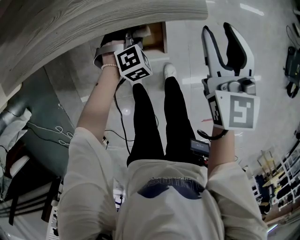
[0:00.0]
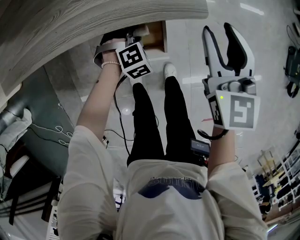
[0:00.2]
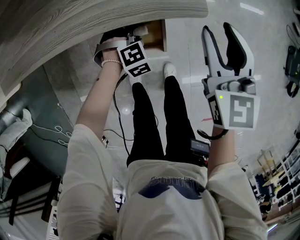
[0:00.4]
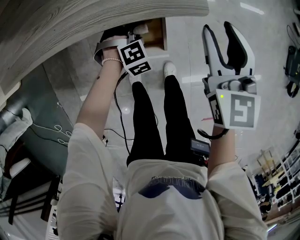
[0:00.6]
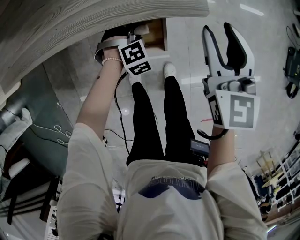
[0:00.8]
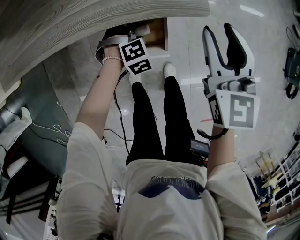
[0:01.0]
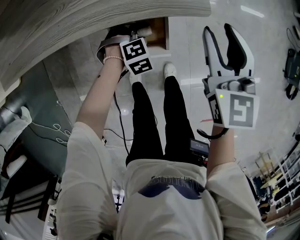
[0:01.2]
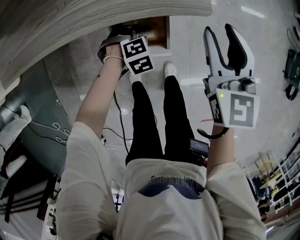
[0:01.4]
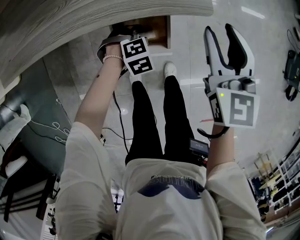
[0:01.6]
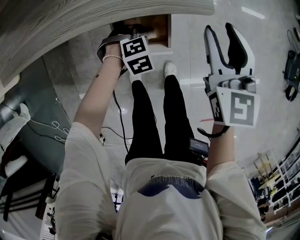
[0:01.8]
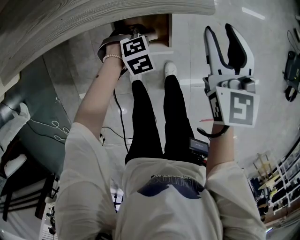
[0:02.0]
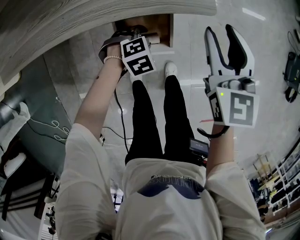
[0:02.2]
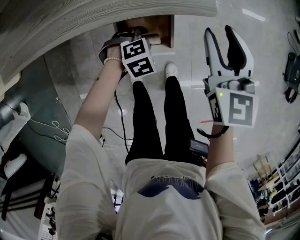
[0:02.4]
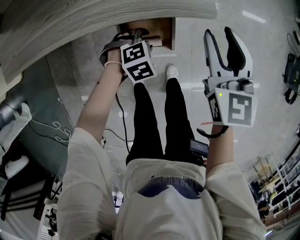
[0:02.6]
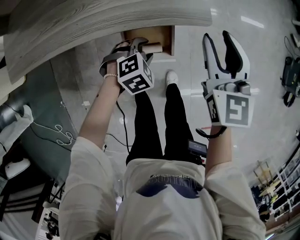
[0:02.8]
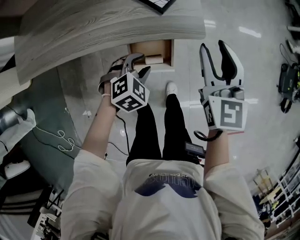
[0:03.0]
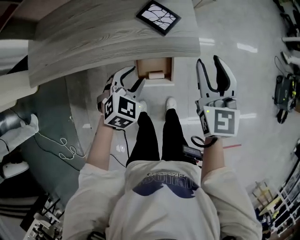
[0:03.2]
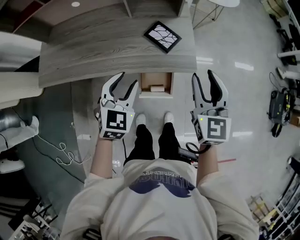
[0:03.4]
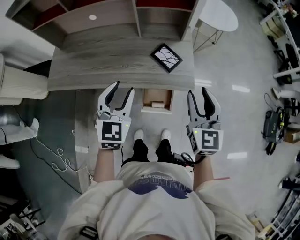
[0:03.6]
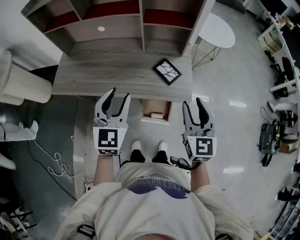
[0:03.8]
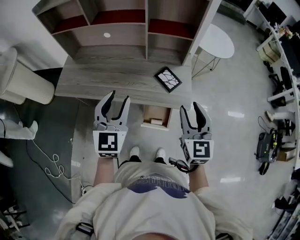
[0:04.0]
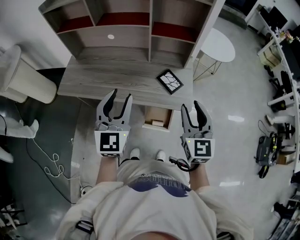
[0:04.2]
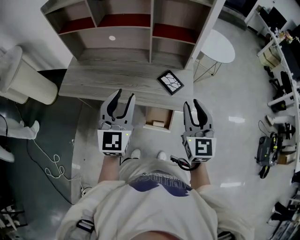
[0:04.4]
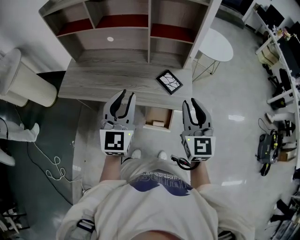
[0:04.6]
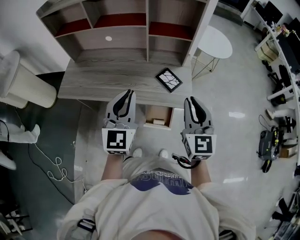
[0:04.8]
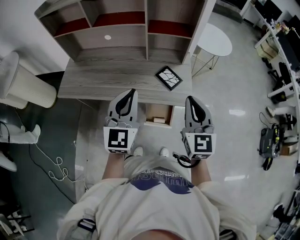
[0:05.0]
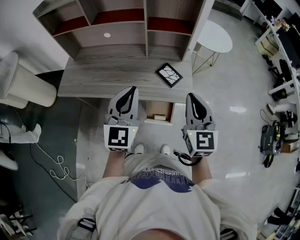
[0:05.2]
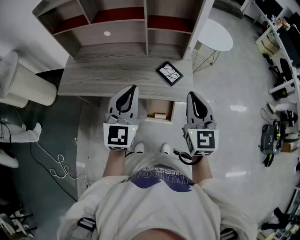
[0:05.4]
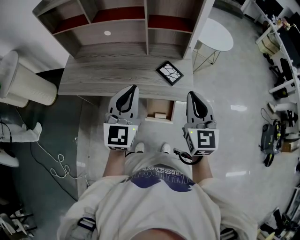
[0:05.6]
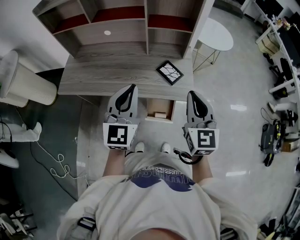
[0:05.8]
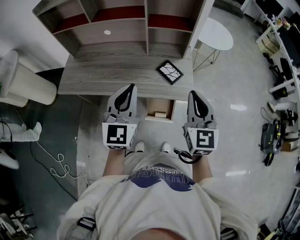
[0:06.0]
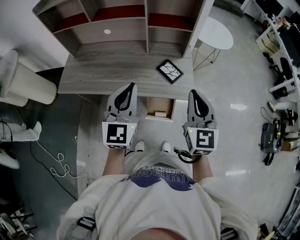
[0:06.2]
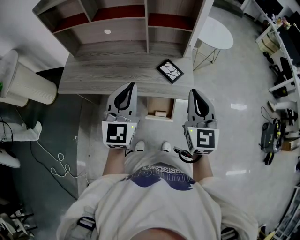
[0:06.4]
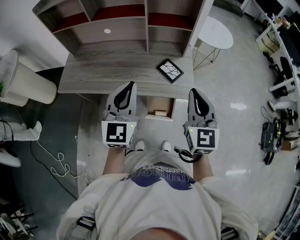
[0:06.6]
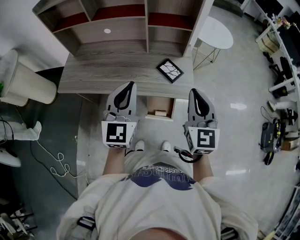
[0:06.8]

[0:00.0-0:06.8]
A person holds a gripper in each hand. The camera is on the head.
0:00.0 to 0:01.4: The grippers stay close to where they were, moving slightly.
0:01.4 to 0:02.8: The left gripper heads upward, covering roughly 10 cm.
0:02.8 to 0:04.0: The right gripper goes roughly 25 cm upward; the left gripper heads upward, covering about 50 cm, and tips its fingers upward by approximately 60 degrees.
0:04.0 to 0:05.4: The right gripper closes its fingers. Meanwhile the left gripper closes.
0:05.4 to 0:06.8: Both grippers stay put.

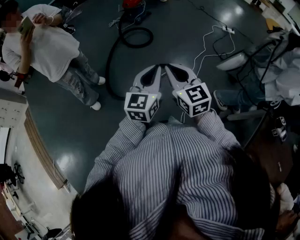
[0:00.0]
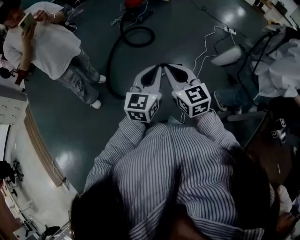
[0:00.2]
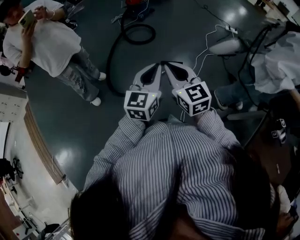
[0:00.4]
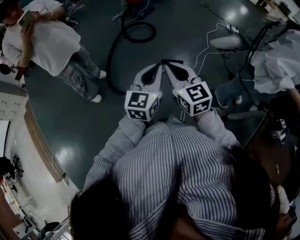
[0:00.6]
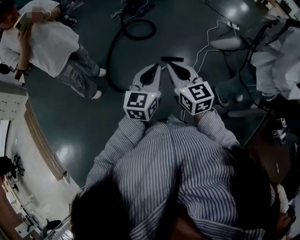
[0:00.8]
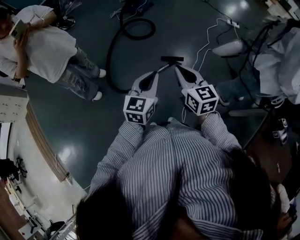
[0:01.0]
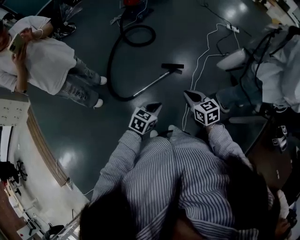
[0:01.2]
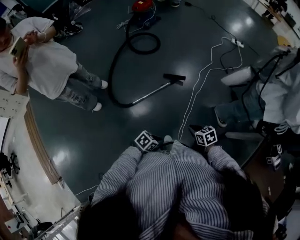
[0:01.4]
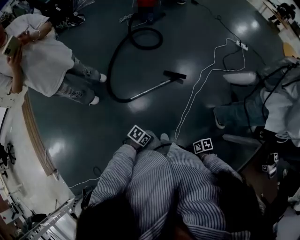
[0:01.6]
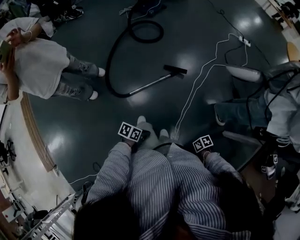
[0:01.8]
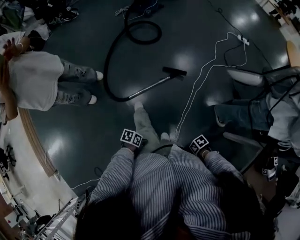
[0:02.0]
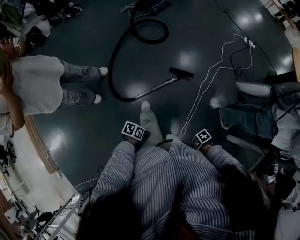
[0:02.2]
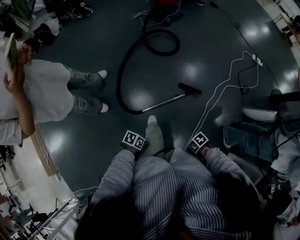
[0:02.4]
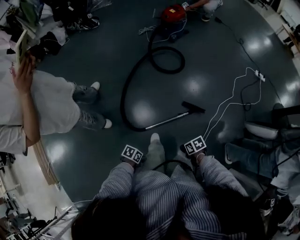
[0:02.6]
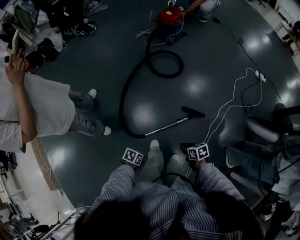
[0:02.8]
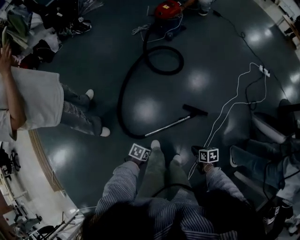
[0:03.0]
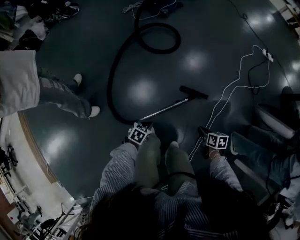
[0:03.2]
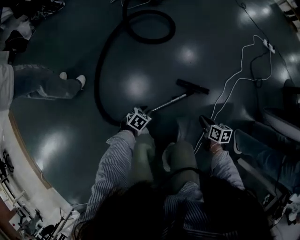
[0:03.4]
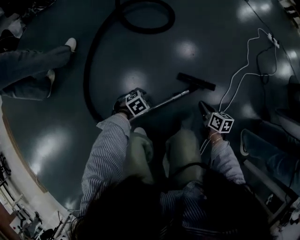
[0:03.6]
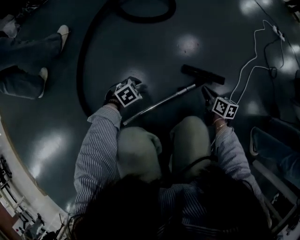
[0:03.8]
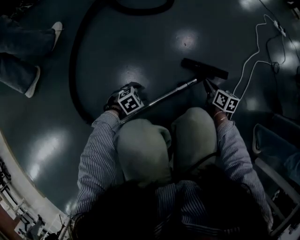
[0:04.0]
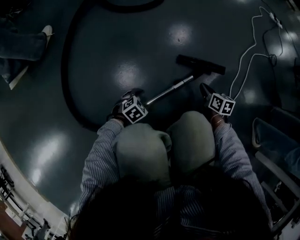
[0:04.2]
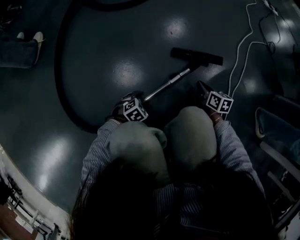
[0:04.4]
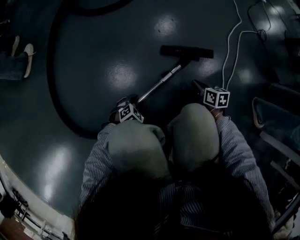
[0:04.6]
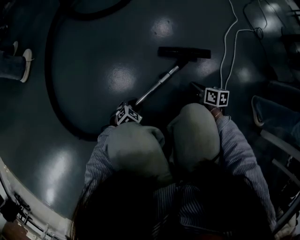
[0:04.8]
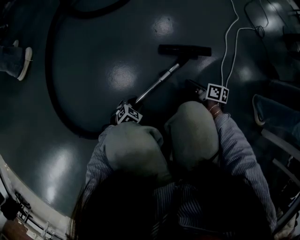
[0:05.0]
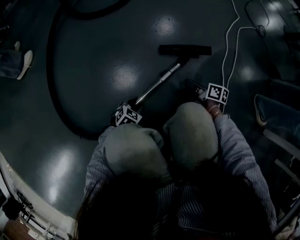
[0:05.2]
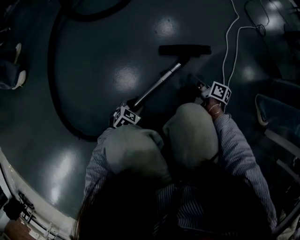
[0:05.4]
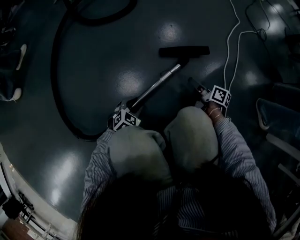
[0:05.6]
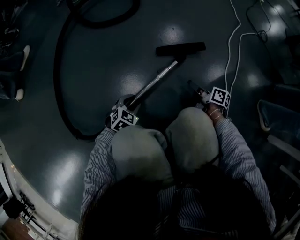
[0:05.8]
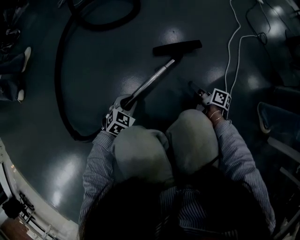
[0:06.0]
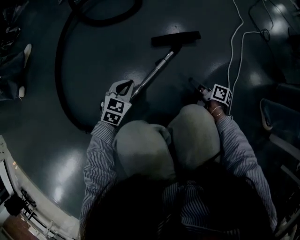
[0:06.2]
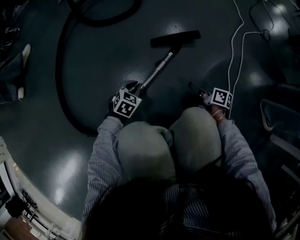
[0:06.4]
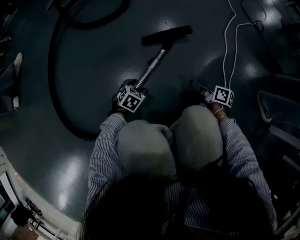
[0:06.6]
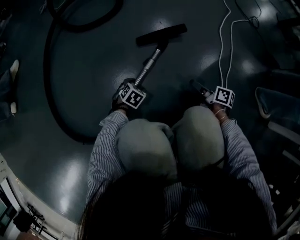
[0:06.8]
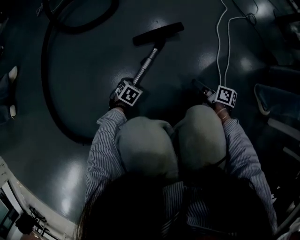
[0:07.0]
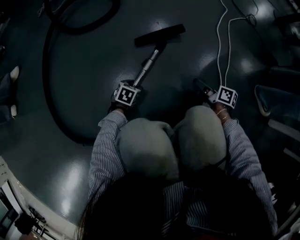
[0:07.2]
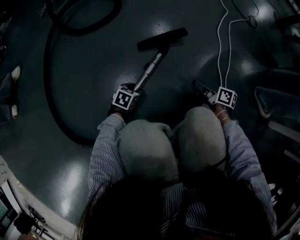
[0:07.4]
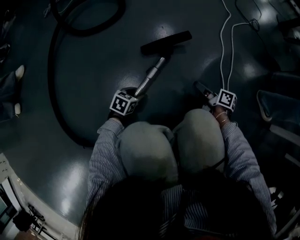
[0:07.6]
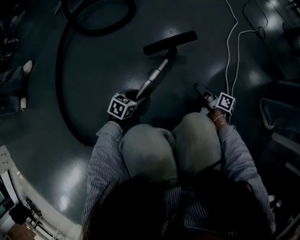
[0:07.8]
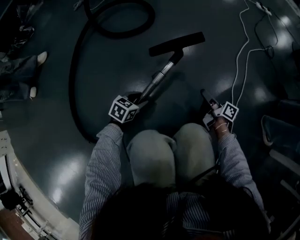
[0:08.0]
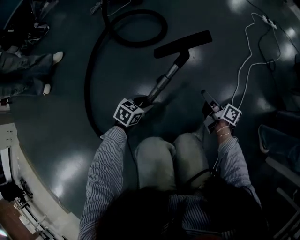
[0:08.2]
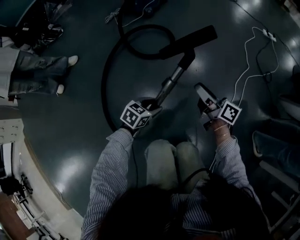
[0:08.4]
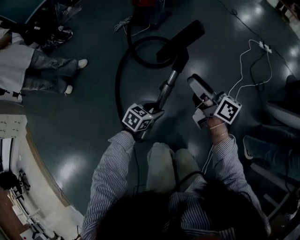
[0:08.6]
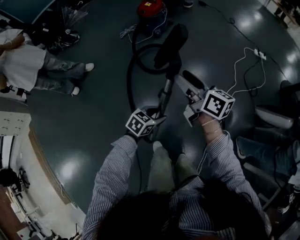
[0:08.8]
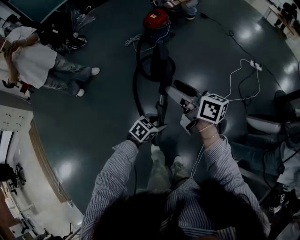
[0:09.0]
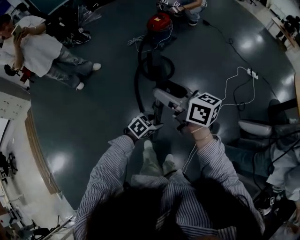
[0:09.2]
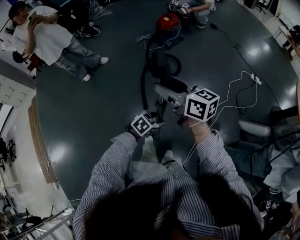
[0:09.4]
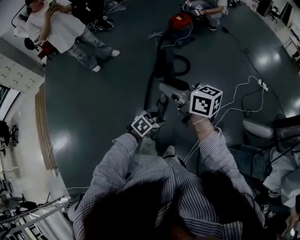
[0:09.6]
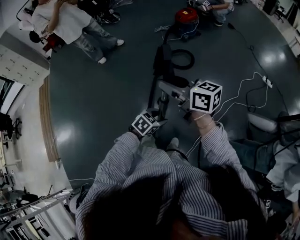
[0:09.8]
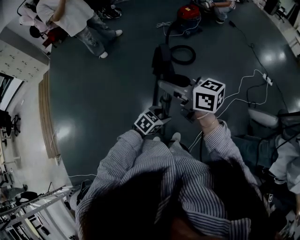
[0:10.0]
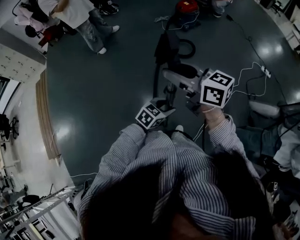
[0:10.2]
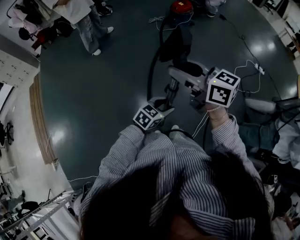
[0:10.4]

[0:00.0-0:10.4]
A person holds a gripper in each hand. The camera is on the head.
0:00.0 to 0:01.4: The grippers both shift downward by about 35 cm. The right gripper tilts its fingers roughly 40 degrees downward. Meanwhile the left gripper tips its fingers downward by roughly 40 degrees.
0:01.4 to 0:03.0: The right gripper changes place by about 35 cm, and rotates roughly 20 degrees, while the left gripper moves roughly 40 cm, and turns by some 30 degrees.
0:03.0 to 0:04.4: Both grippers travel together downward, roughly 50 cm. The right gripper changes its angle by some 30 degrees. The left gripper rolls clockwise, seen from behind, by approximately 50 degrees, and opens up.
0:04.4 to 0:06.0: The left gripper shifts roughly 15 cm upward and forward, changes its angle by about 30 degrees, and closes its fingers, while the right gripper turns by about 40 degrees, and opens.
0:06.0 to 0:07.4: The left gripper moves downward and to the right, about 15 cm, and rotates roughly 20 degrees. The right gripper heads to the right, covering about 5 cm.
0:07.4 to 0:09.0: The two grippers go roughly 80 cm upward. The right gripper turns by roughly 50 degrees, and opens its fingers.
0:09.0 to 0:10.4: The right gripper moves backward, to the left and upward, roughly 35 cm, turns by roughly 30 degrees, and closes; the left gripper shifts roughly 30 cm backward and upward, and swivels some 20 degrees.

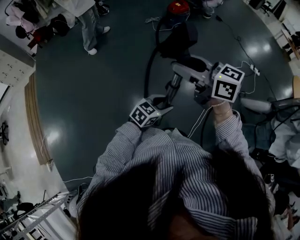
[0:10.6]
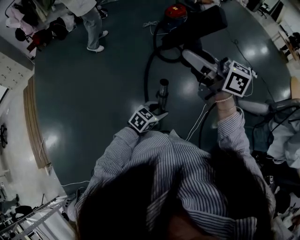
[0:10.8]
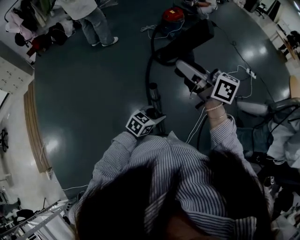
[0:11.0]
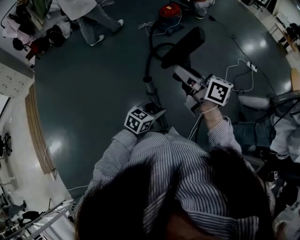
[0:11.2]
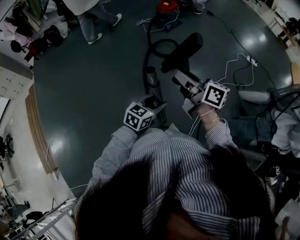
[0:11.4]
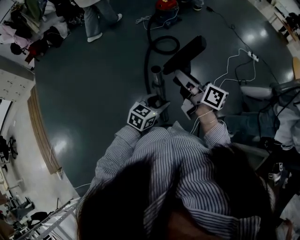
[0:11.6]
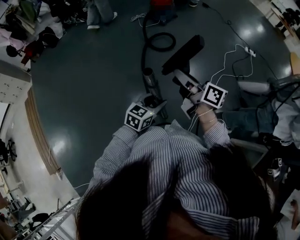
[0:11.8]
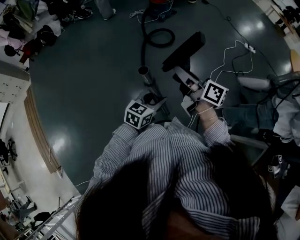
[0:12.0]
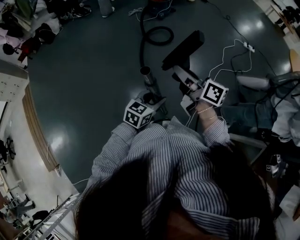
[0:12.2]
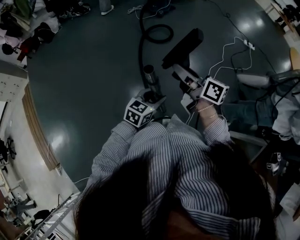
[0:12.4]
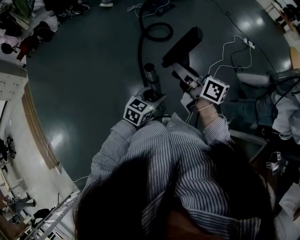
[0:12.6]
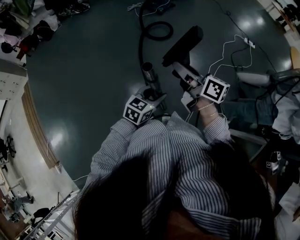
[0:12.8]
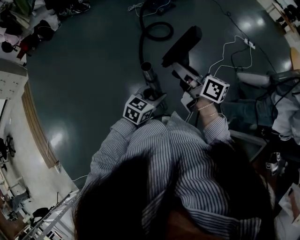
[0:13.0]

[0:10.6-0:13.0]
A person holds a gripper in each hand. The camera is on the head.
0:10.6 to 0:11.8: The right gripper goes about 15 cm downward and to the right, and rotates approximately 40 degrees.
0:11.8 to 0:13.0: The grippers stay close to where they were, moving slightly.

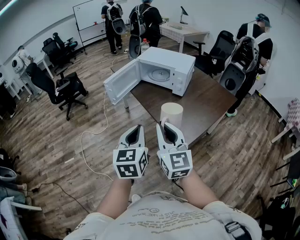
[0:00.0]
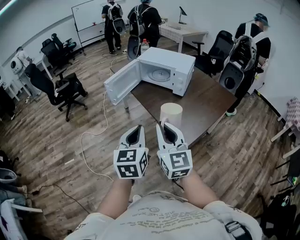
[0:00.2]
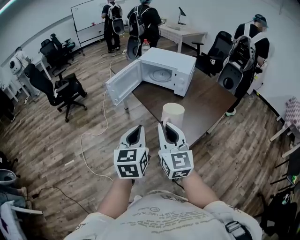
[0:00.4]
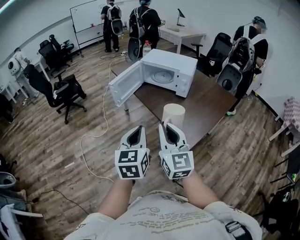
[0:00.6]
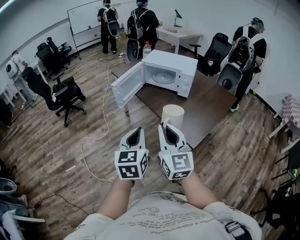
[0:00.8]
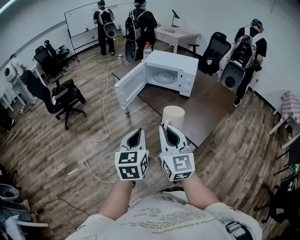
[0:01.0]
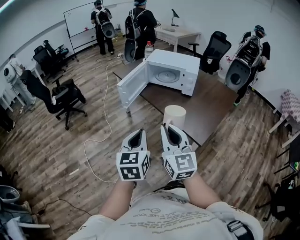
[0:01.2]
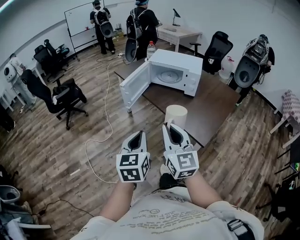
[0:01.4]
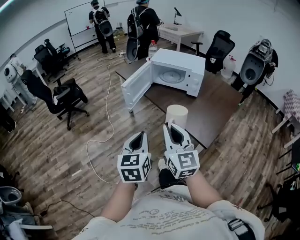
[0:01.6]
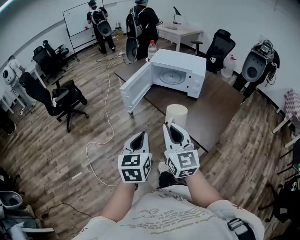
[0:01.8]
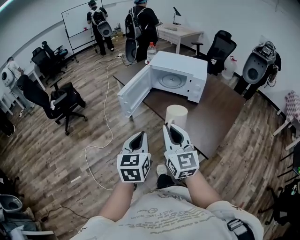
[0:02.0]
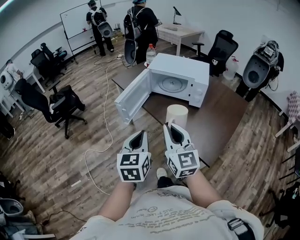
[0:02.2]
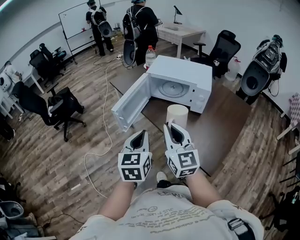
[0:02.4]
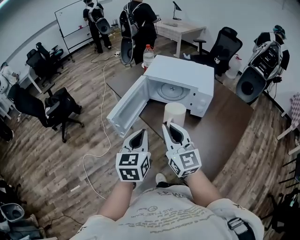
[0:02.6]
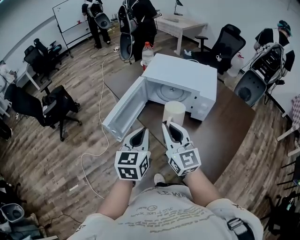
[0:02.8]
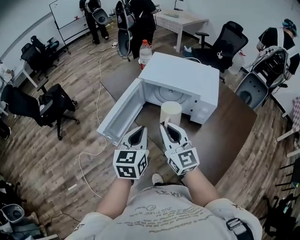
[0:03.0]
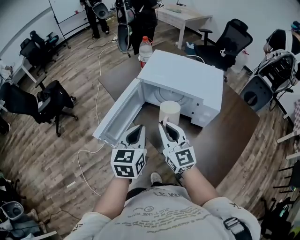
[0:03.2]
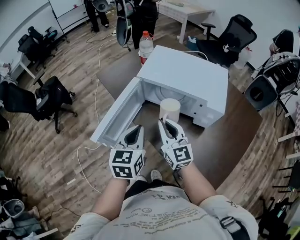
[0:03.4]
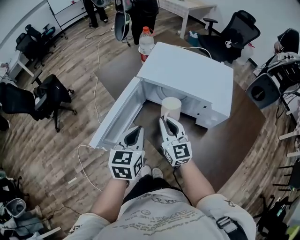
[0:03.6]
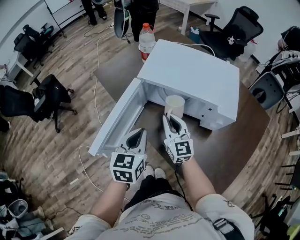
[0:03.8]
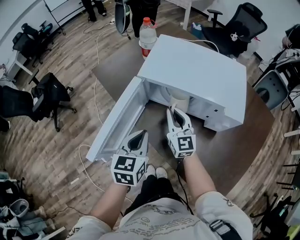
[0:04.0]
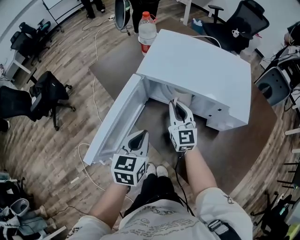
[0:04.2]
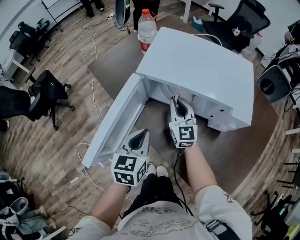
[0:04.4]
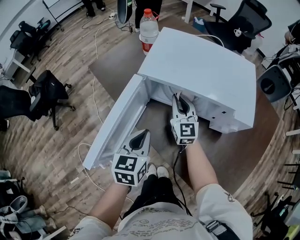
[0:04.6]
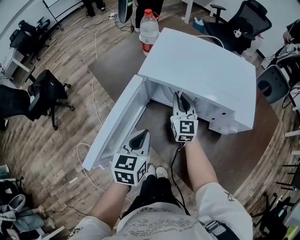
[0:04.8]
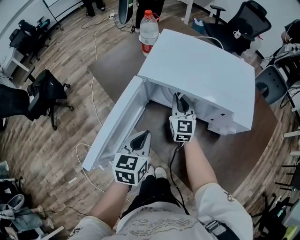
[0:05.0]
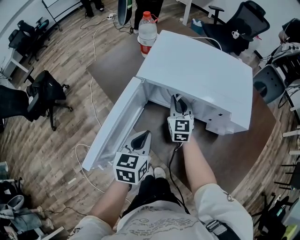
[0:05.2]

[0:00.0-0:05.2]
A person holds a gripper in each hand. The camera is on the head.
0:00.0 to 0:01.8: The right gripper travels to the left and forward by some 15 cm, while the left gripper moves to the left, roughly 15 cm.
0:01.8 to 0:03.4: Both grippers are carried forward, some 40 cm.
0:03.4 to 0:05.2: The left gripper goes about 15 cm downward and forward; the right gripper is displaced forward and downward by some 25 cm, and changes its angle by roughly 20 degrees.
